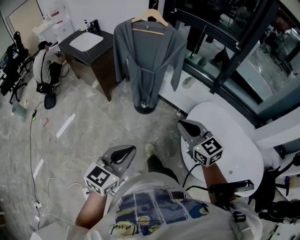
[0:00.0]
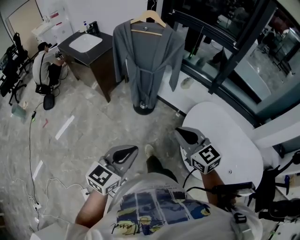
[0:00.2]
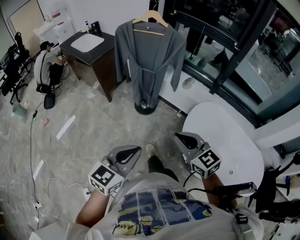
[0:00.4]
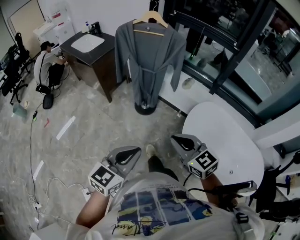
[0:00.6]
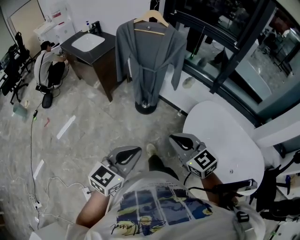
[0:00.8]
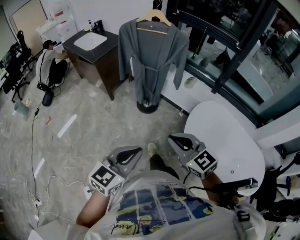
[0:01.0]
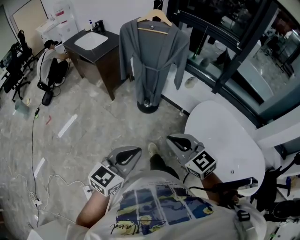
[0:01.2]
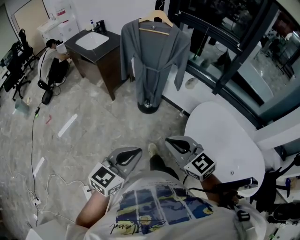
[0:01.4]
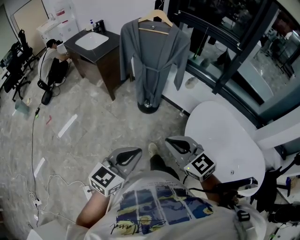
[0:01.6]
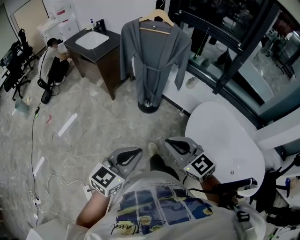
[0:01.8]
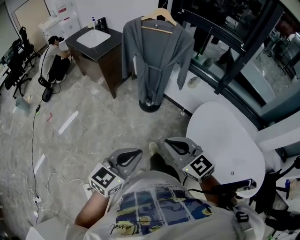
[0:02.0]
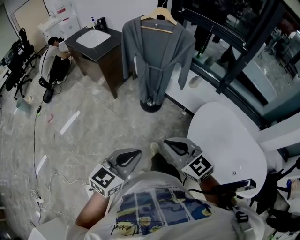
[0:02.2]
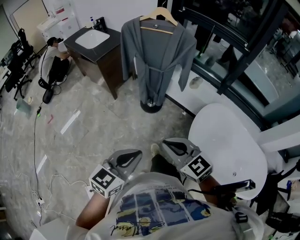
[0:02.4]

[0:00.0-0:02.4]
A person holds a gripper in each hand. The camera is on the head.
0:00.0 to 0:01.2: The right gripper moves backward and to the left, about 10 cm.
0:01.2 to 0:02.4: There are only small adjustments of the grippers.

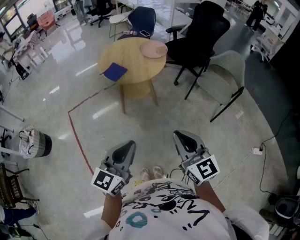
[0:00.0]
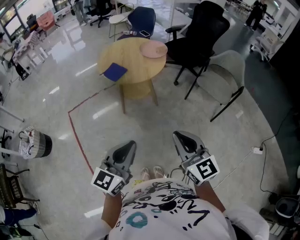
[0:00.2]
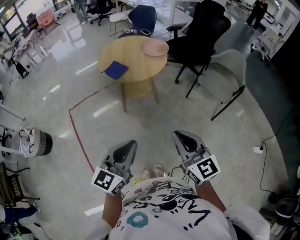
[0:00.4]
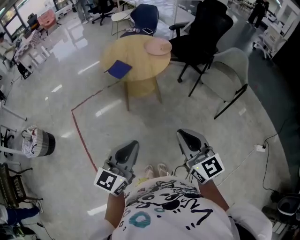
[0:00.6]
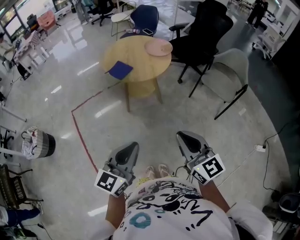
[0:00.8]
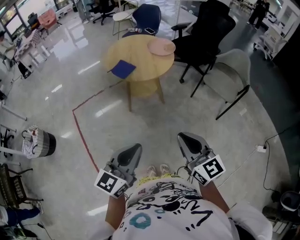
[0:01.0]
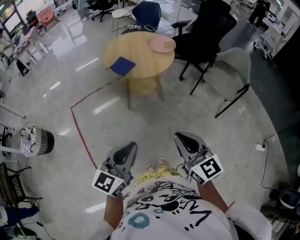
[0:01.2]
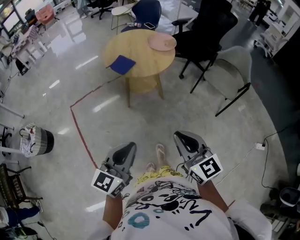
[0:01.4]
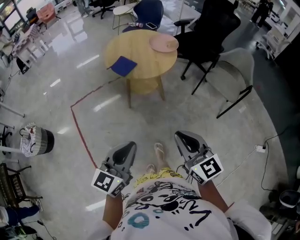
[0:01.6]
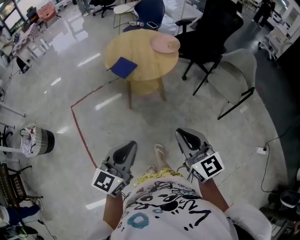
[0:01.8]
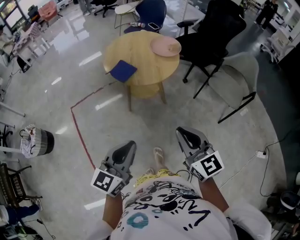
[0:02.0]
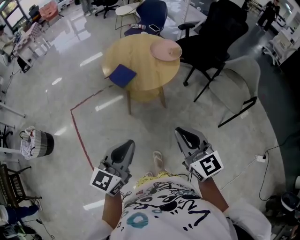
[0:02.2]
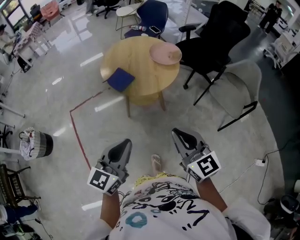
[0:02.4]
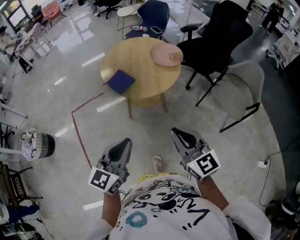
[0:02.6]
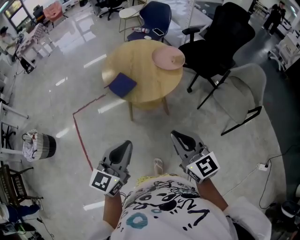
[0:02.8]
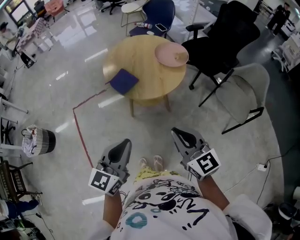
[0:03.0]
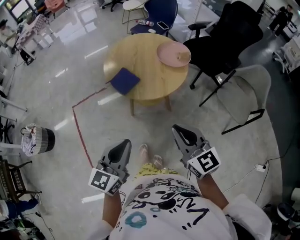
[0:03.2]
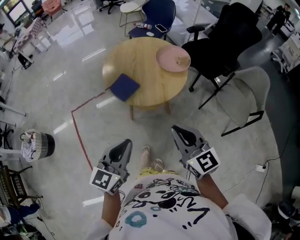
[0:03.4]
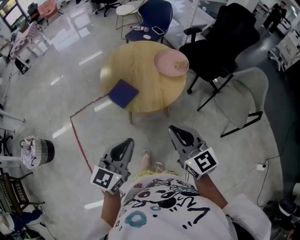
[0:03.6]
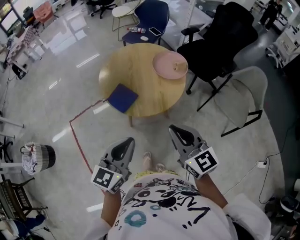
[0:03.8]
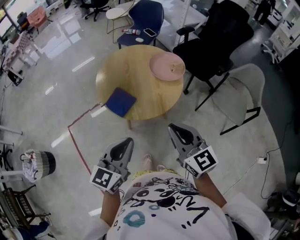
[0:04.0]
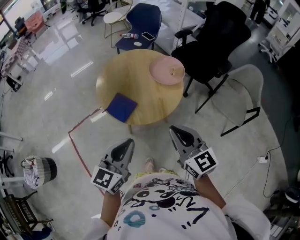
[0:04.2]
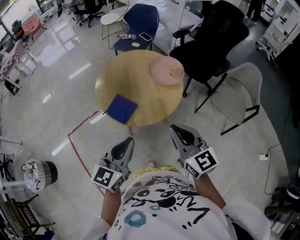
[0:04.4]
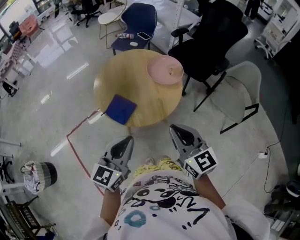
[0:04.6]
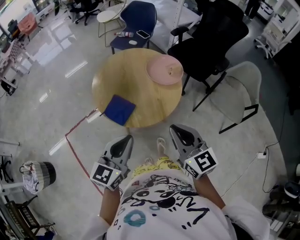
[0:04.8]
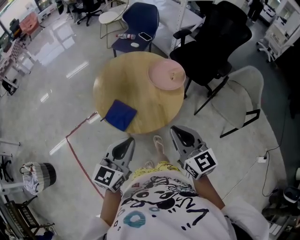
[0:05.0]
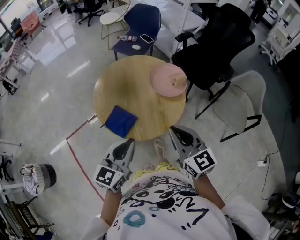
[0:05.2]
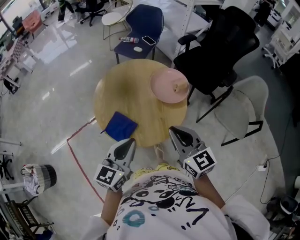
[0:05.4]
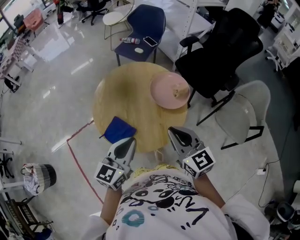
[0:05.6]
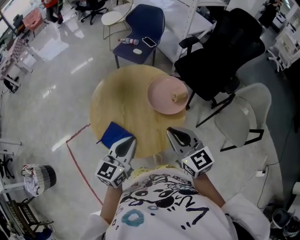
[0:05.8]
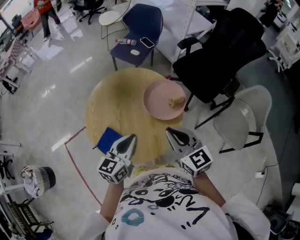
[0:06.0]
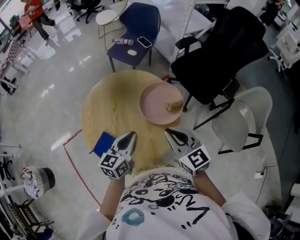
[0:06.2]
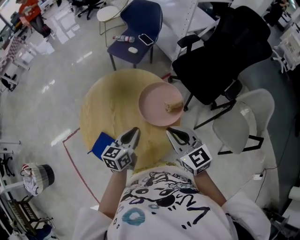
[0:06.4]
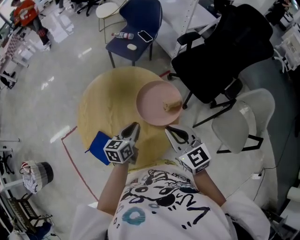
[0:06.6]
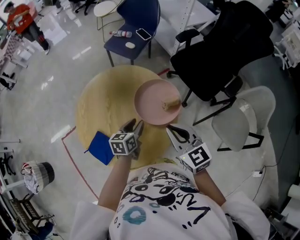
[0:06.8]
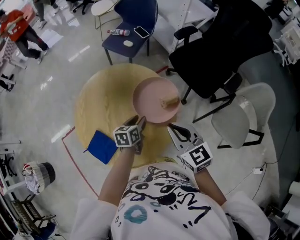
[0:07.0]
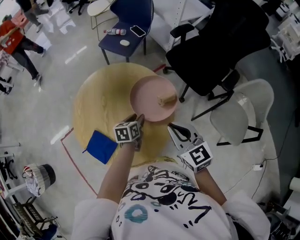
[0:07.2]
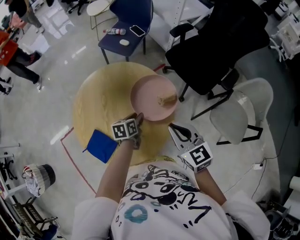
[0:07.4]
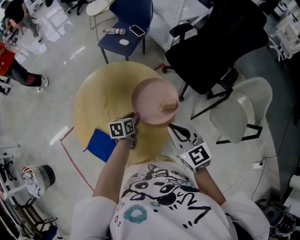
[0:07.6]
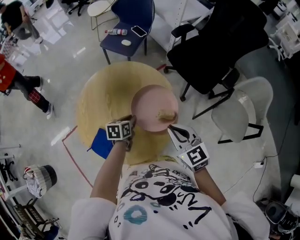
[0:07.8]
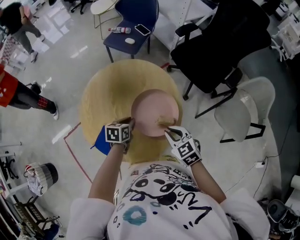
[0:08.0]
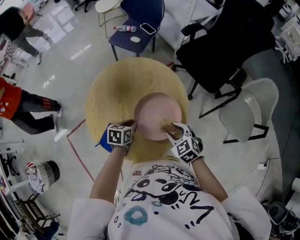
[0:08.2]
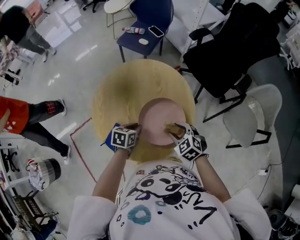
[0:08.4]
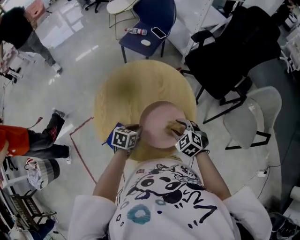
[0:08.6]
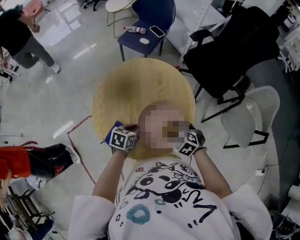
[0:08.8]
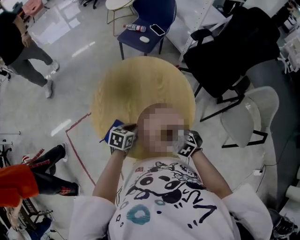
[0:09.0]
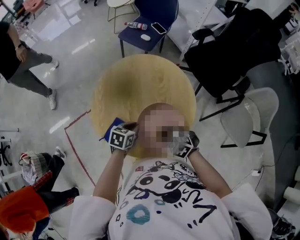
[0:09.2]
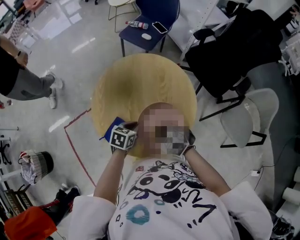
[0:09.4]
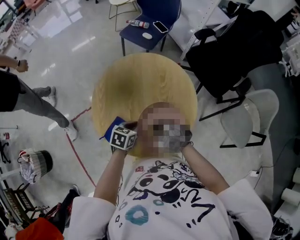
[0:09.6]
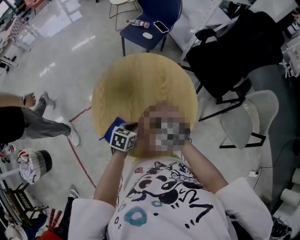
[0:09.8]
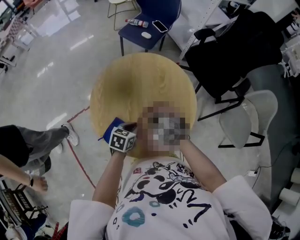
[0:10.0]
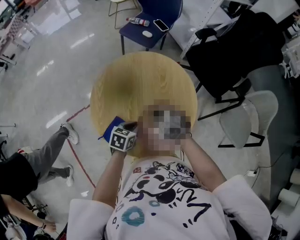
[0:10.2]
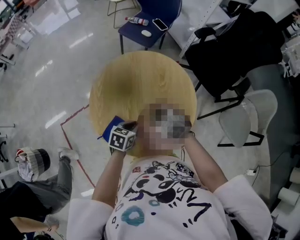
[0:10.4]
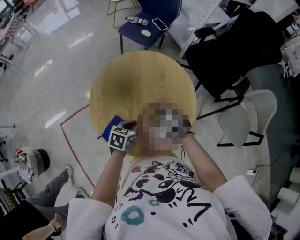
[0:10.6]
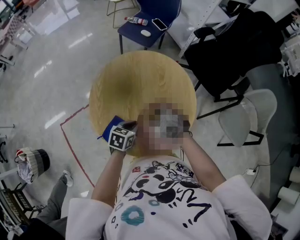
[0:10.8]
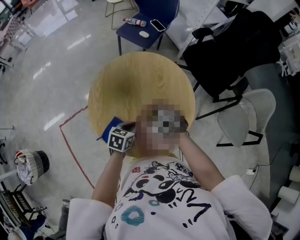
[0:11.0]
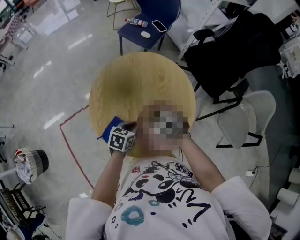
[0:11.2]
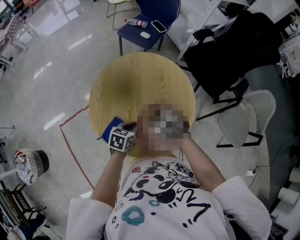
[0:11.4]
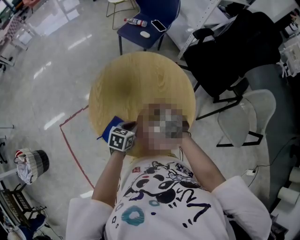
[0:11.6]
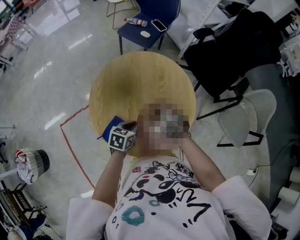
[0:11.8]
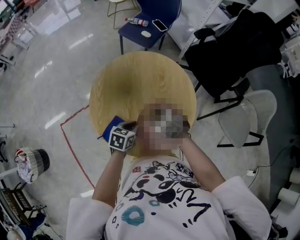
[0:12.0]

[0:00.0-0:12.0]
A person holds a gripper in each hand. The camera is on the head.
0:00.0 to 0:01.6: Both grippers travel together to the left, some 5 cm.
0:01.6 to 0:03.0: Both grippers travel together forward, about 20 cm.
0:03.0 to 0:04.4: The two grippers go approximately 15 cm forward.
0:04.4 to 0:06.0: Both grippers travel together forward, roughly 25 cm.
0:06.0 to 0:07.6: The left gripper travels downward and forward by about 25 cm, and turns by approximately 40 degrees. The right gripper shifts some 10 cm to the right and downward.
0:07.6 to 0:09.0: The right gripper heads downward and to the left, covering approximately 20 cm, points its fingers about 30 degrees further downward, and opens, then closes once more, while the left gripper travels to the left and backward by roughly 15 cm.
0:09.0 to 0:10.4: The right gripper shifts about 10 cm forward and to the left.
0:10.4 to 0:12.0: There are only small adjustments of the grippers.

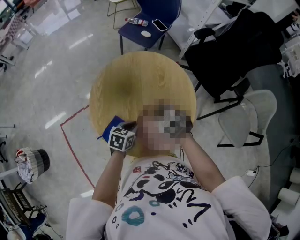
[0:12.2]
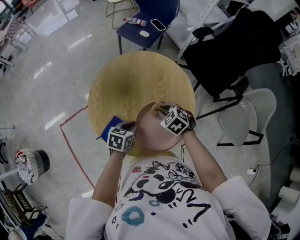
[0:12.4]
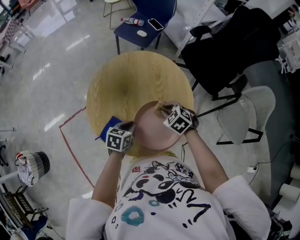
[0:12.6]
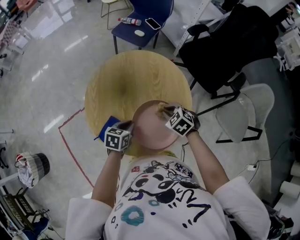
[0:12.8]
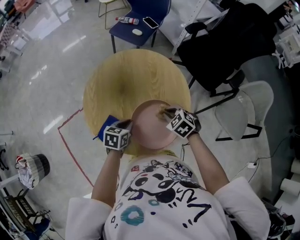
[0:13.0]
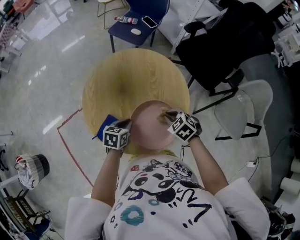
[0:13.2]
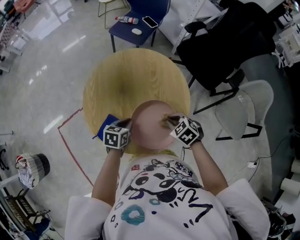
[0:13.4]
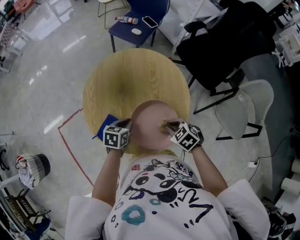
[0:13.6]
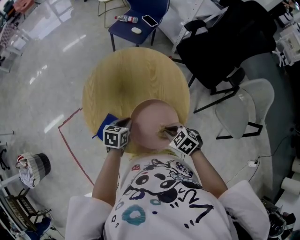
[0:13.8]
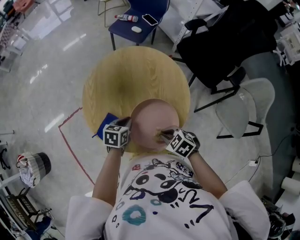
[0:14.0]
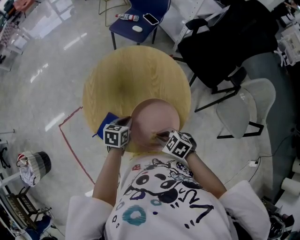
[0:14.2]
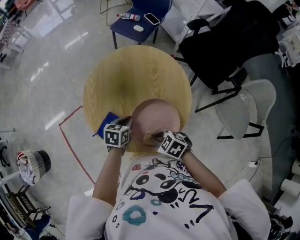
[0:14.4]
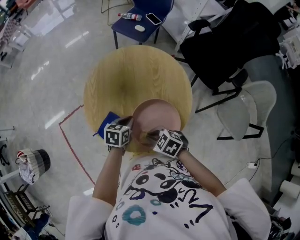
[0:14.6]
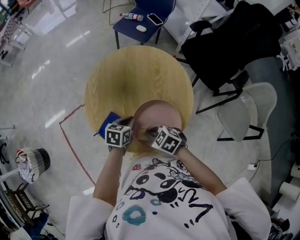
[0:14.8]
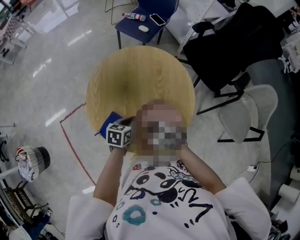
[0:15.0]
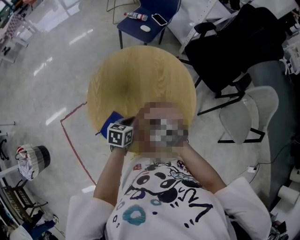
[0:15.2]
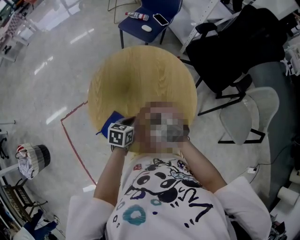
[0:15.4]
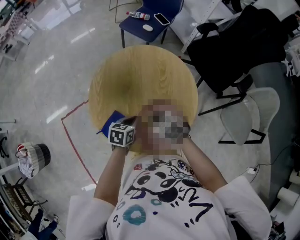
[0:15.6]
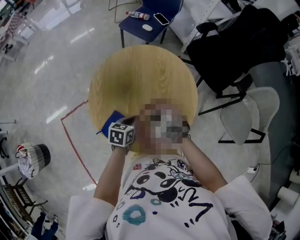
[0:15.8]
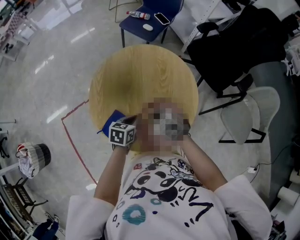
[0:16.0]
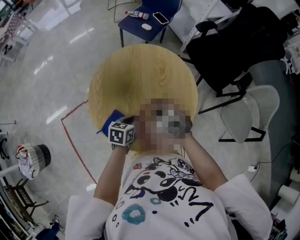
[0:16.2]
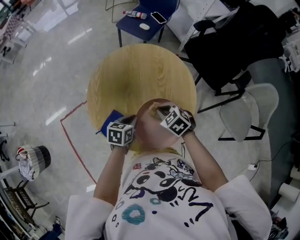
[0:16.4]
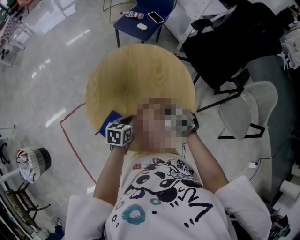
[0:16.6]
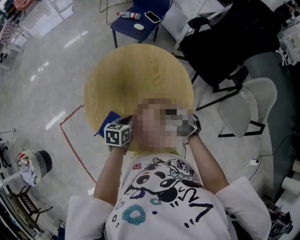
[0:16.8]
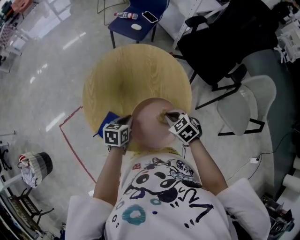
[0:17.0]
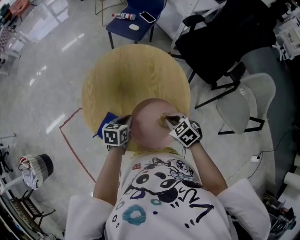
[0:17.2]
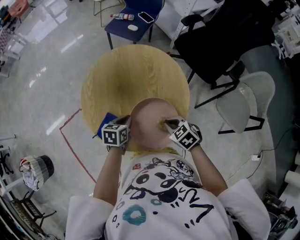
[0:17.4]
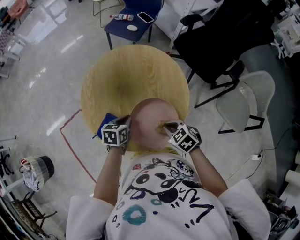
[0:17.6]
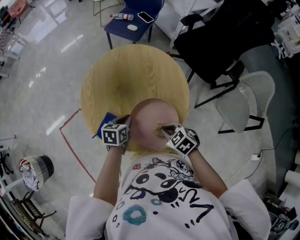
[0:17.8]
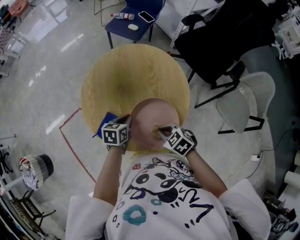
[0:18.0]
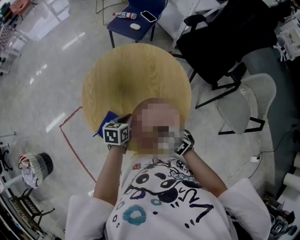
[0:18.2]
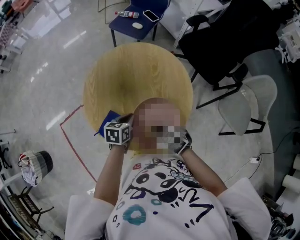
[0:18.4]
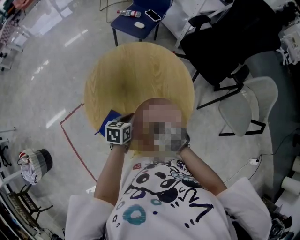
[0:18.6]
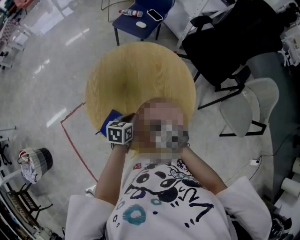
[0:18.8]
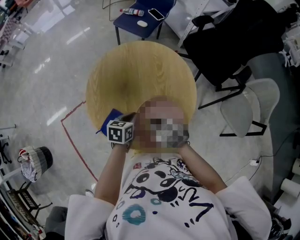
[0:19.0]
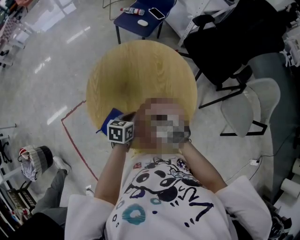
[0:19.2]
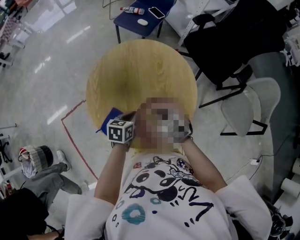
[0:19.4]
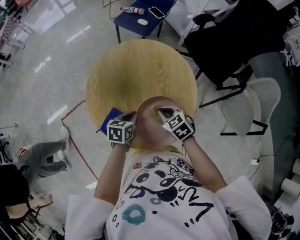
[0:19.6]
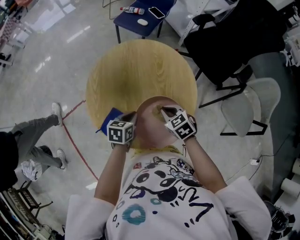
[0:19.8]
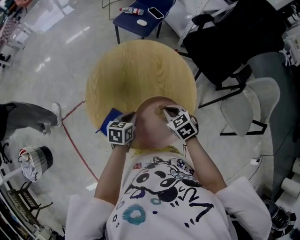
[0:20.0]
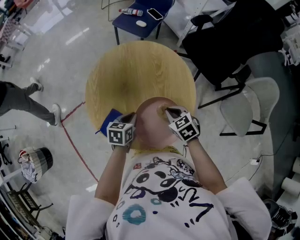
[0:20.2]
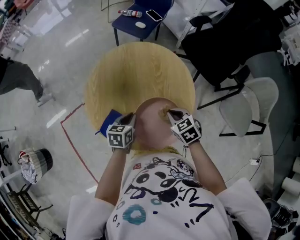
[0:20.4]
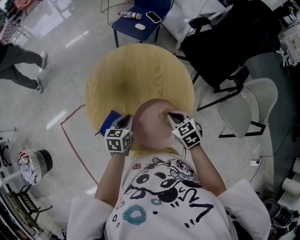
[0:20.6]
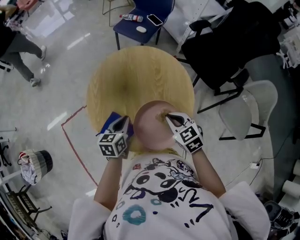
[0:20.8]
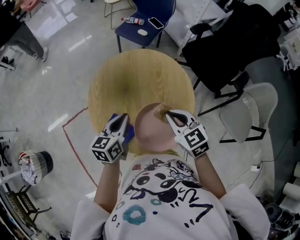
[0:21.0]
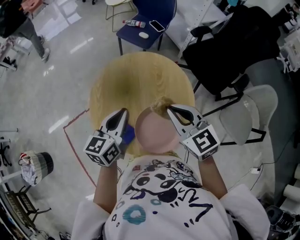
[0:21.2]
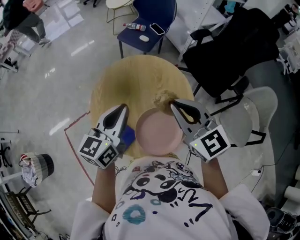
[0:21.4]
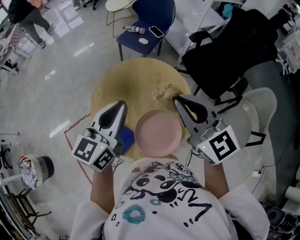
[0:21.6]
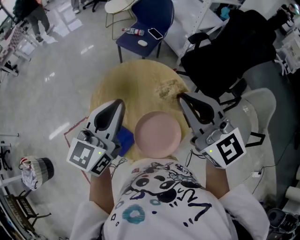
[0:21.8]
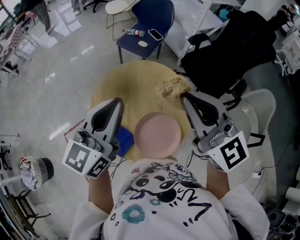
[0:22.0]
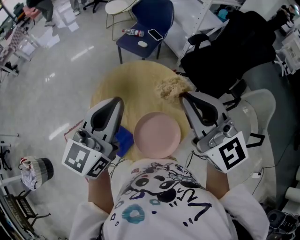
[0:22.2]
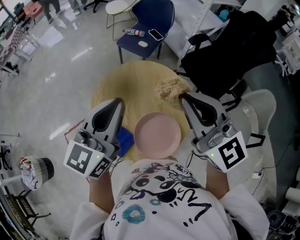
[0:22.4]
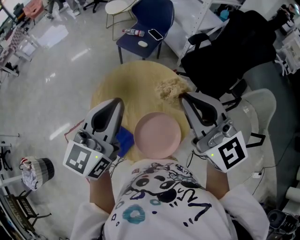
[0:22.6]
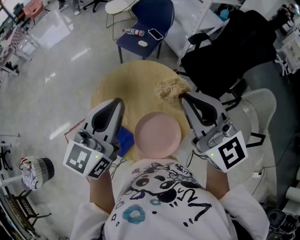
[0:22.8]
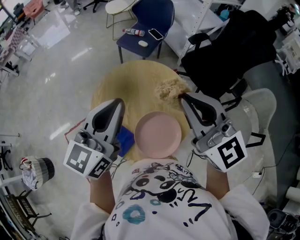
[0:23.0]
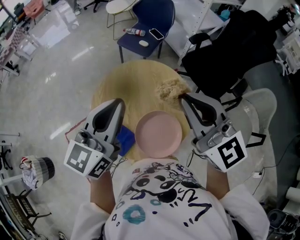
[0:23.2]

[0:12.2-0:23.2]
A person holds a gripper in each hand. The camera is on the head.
0:12.2 to 0:13.8: The right gripper heads backward and to the right, covering some 15 cm.
0:13.8 to 0:15.4: The right gripper shifts by approximately 10 cm.
0:15.4 to 0:17.0: The right gripper is displaced to the right by about 10 cm.
0:17.0 to 0:18.4: The right gripper travels to the left and backward by about 10 cm.
0:18.4 to 0:20.0: The right gripper travels forward and to the right by some 10 cm.
0:20.0 to 0:21.6: The two grippers go approximately 30 cm upward. The left gripper tilts its fingers roughly 40 degrees upward, while the right gripper points its fingers about 40 degrees further upward.
0:21.6 to 0:23.2: Both grippers move upward, about 5 cm.
